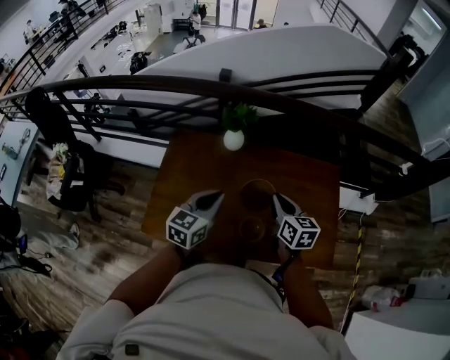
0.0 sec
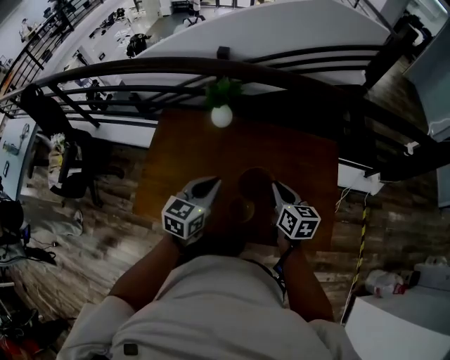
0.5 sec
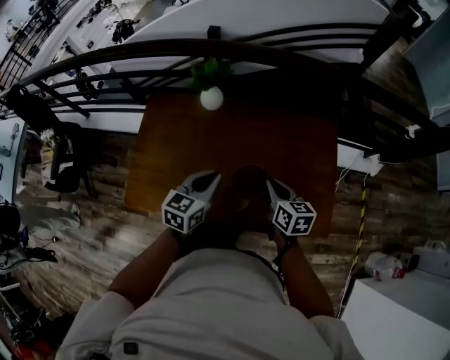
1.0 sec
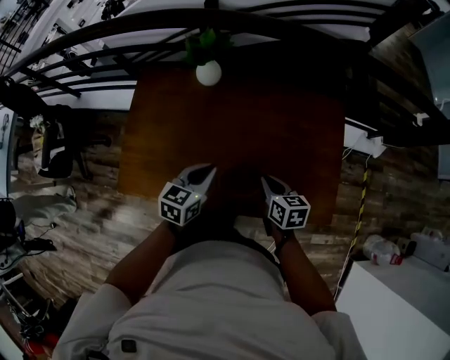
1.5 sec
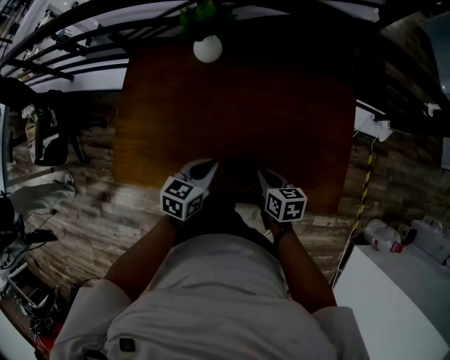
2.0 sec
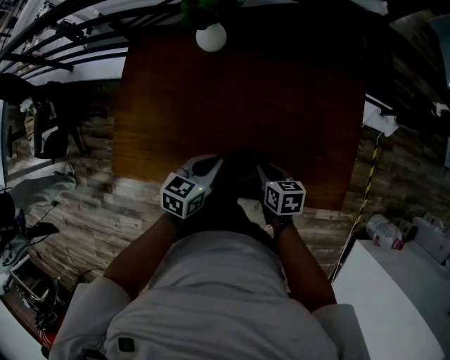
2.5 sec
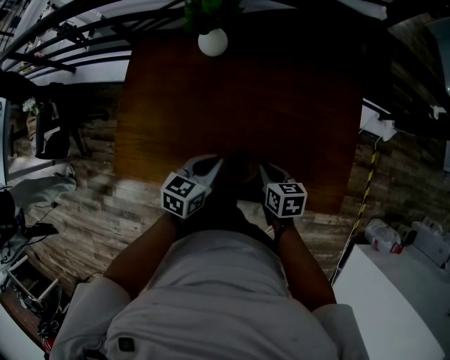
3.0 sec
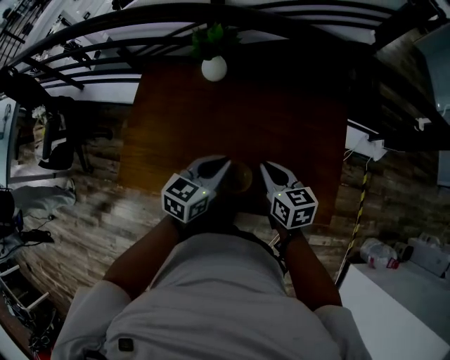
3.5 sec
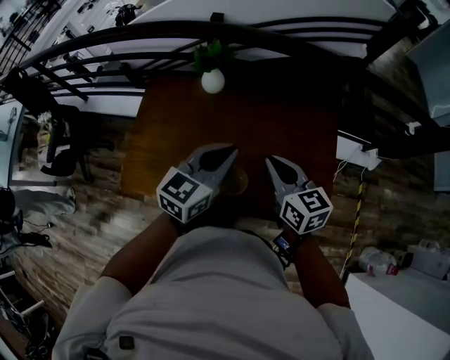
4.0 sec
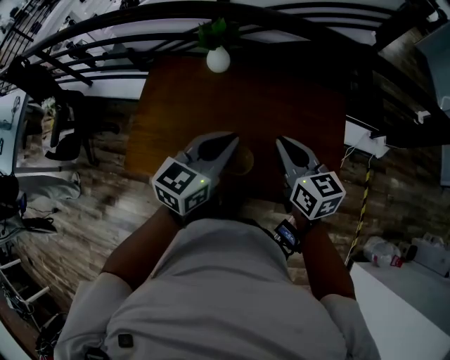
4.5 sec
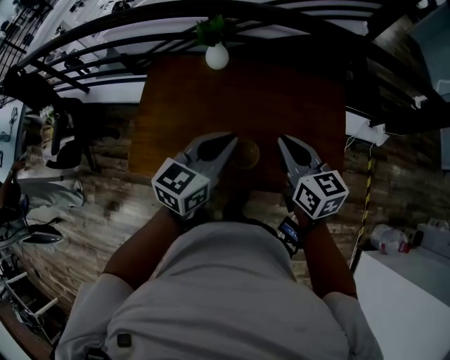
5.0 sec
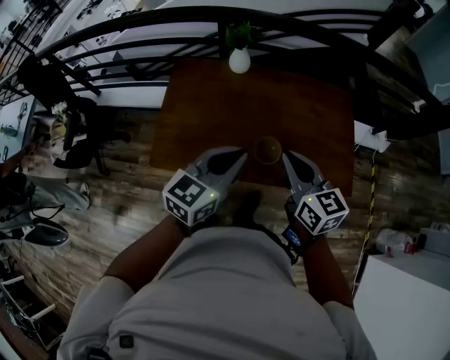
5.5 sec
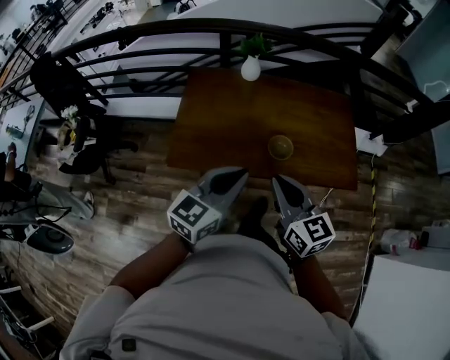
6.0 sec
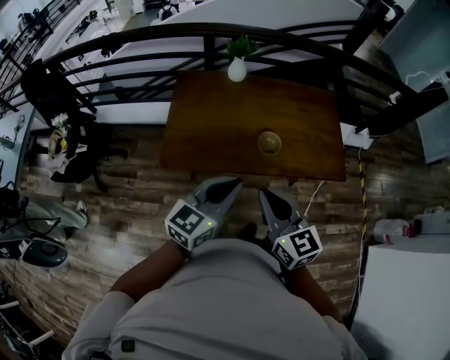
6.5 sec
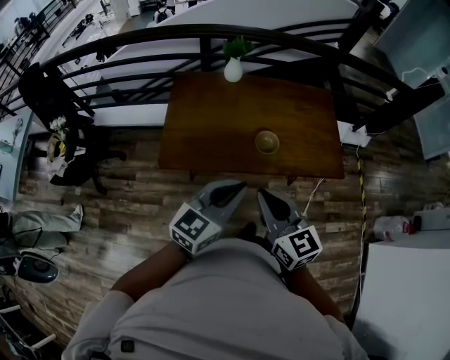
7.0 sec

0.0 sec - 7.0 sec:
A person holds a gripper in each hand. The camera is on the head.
0.0 sec - 2.0 sec: The left gripper moves downward and to the right, approximately 25 cm, and turns by approximately 20 degrees. Meanwhile the right gripper is displaced downward by roughly 25 cm, and turns by about 30 degrees.
2.0 sec - 3.5 sec: The grippers both shift upward by approximately 15 cm.
3.5 sec - 5.0 sec: The grippers both shift upward and backward by about 15 cm.
5.0 sec - 7.0 sec: The left gripper heads backward, covering roughly 35 cm, while the right gripper shifts roughly 40 cm backward and to the left.

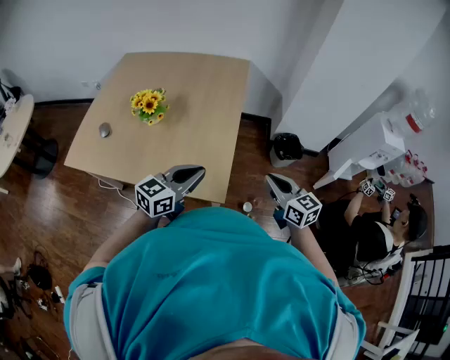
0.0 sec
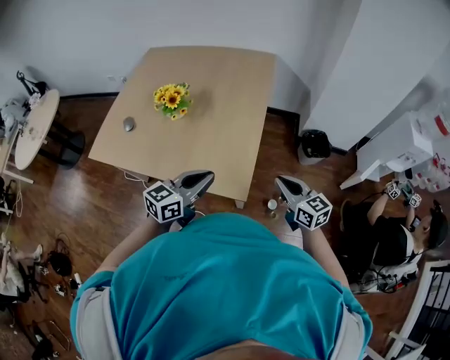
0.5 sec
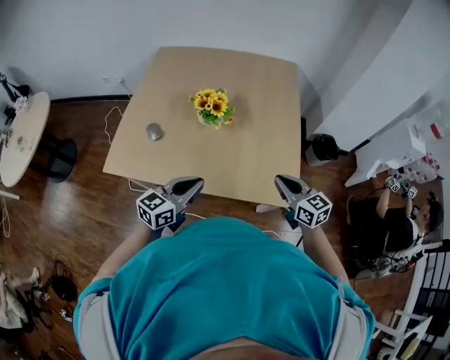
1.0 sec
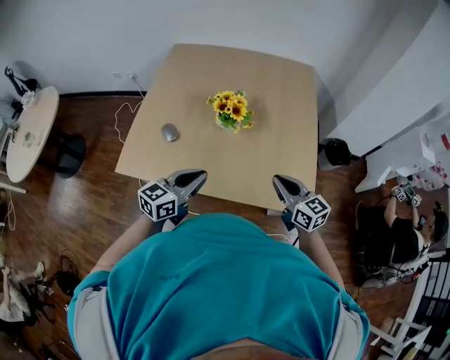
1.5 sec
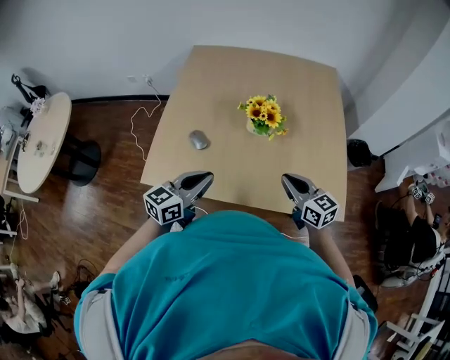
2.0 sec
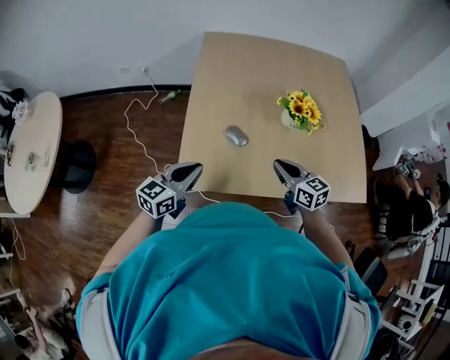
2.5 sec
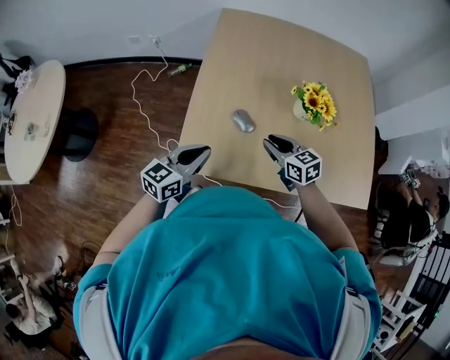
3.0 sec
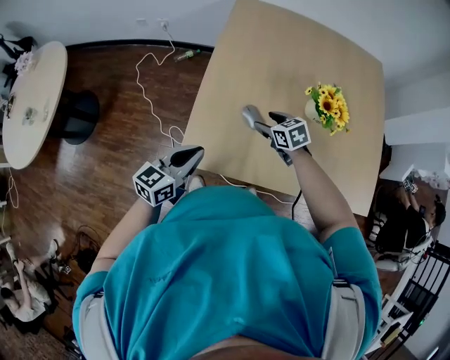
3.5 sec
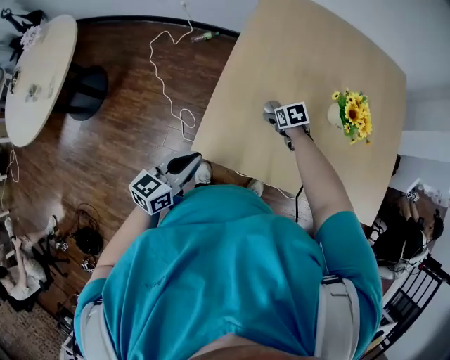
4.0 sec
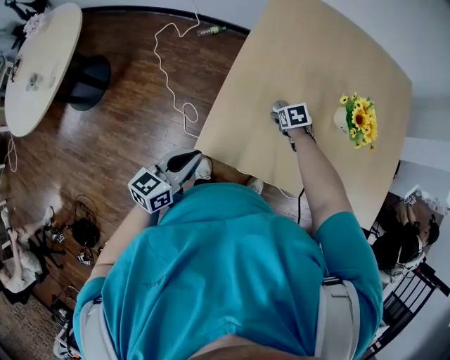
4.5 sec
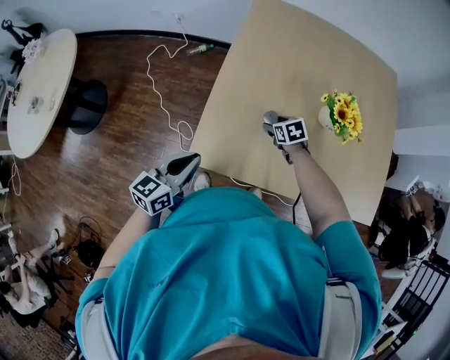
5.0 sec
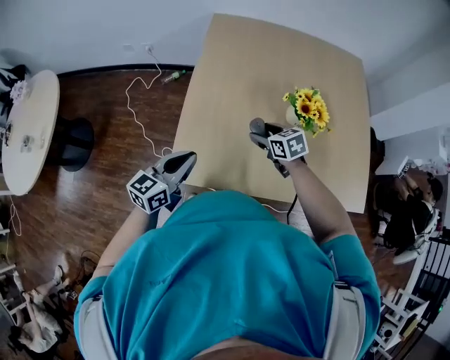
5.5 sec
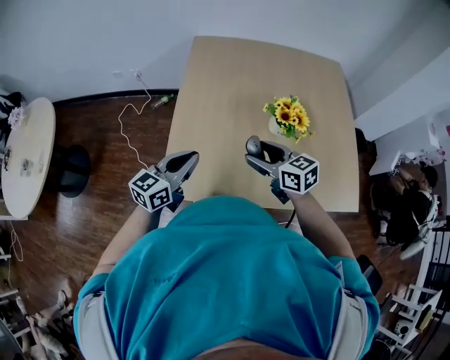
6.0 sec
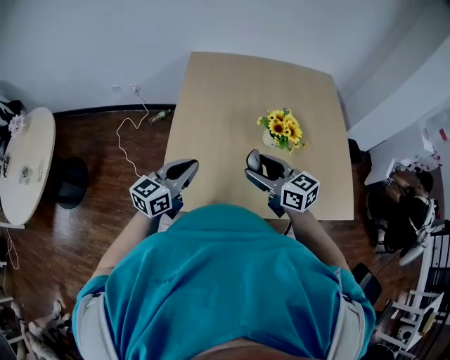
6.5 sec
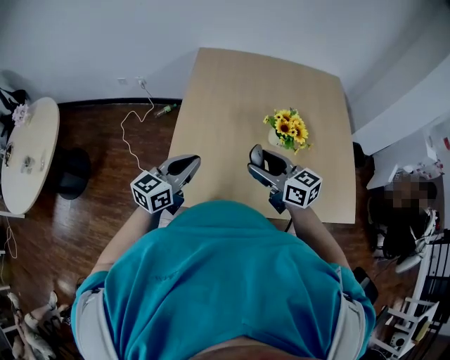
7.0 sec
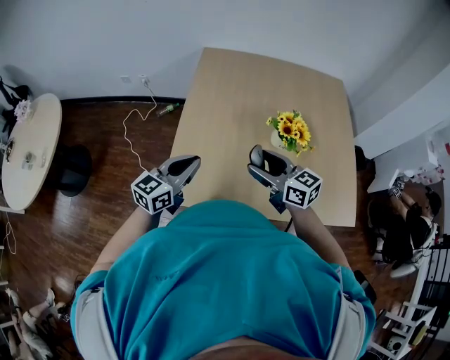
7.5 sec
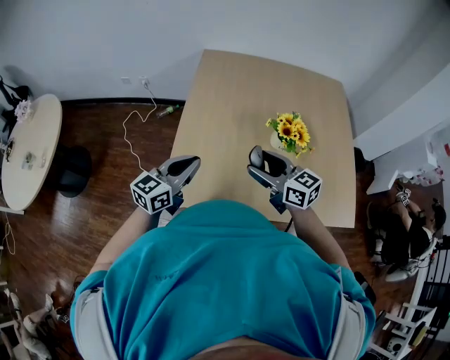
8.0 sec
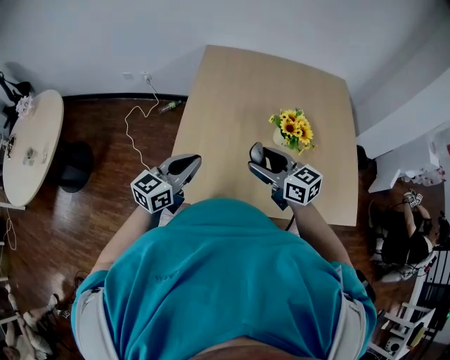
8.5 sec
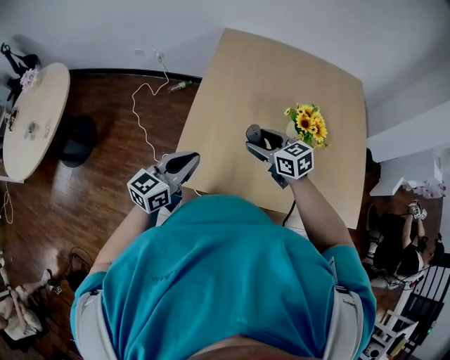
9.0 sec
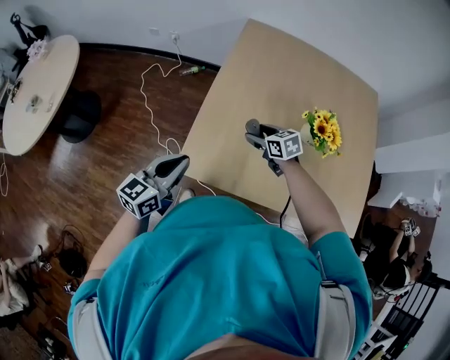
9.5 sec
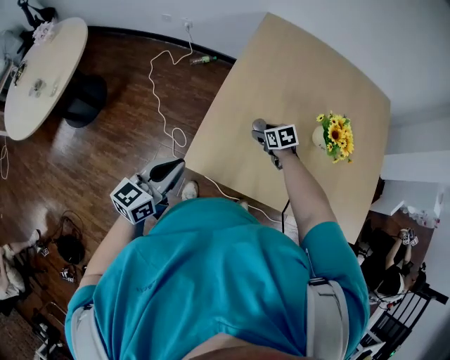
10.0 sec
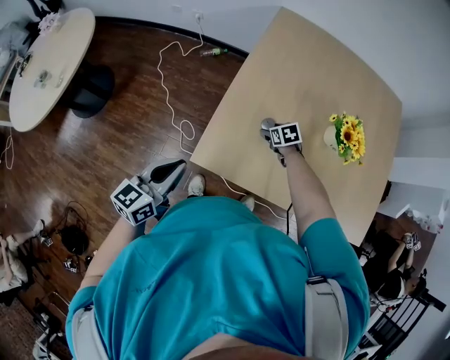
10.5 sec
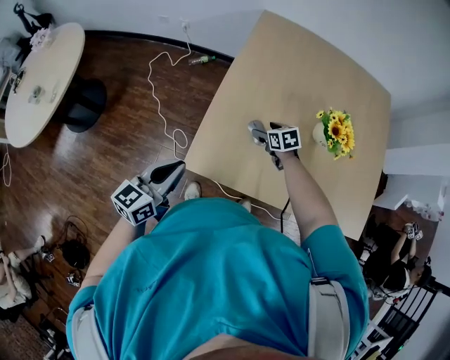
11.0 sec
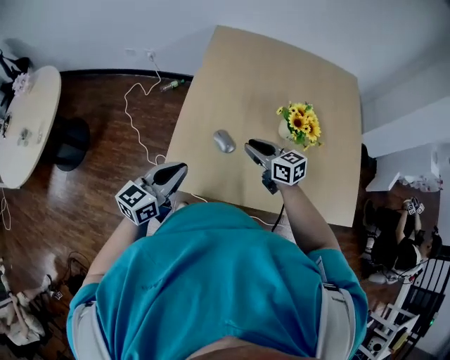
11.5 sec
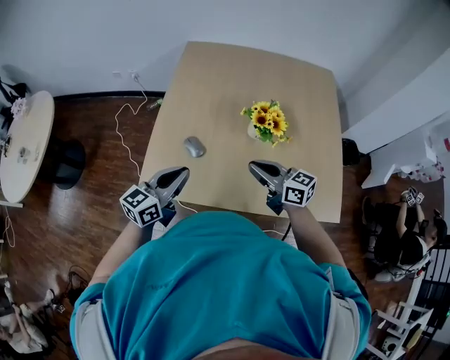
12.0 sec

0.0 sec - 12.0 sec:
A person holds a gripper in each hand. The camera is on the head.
0.0 sec - 2.0 sec: Both grippers are carried to the left, approximately 50 cm.
2.0 sec - 4.0 sec: The left gripper travels to the left by approximately 35 cm, while the right gripper heads to the left, downward and forward, covering roughly 50 cm, angles its fingers downward, by roughly 50 degrees, and opens.
4.0 sec - 6.0 sec: The right gripper moves upward and backward, some 30 cm, and points its fingers approximately 40 degrees further upward. The left gripper is displaced to the right, upward and forward by some 20 cm.
6.0 sec - 8.0 sec: The grippers move only a little.
8.0 sec - 10.0 sec: The left gripper heads to the left and backward, covering roughly 15 cm. Meanwhile the right gripper moves downward and forward, some 30 cm, and angles its fingers downward, by about 50 degrees.
10.0 sec - 12.0 sec: The left gripper travels to the right by some 25 cm, while the right gripper moves upward, backward and to the right, roughly 35 cm, angles its fingers upward, by approximately 50 degrees, and closes its fingers.

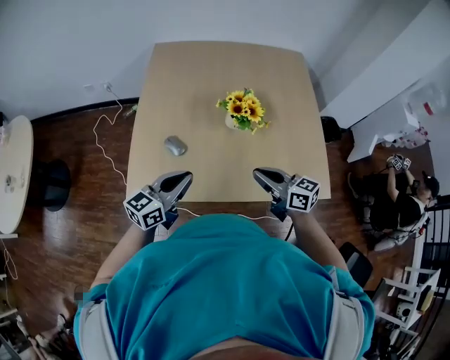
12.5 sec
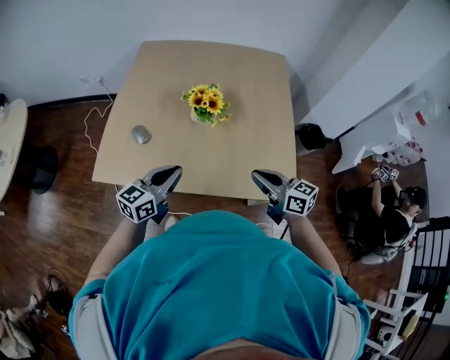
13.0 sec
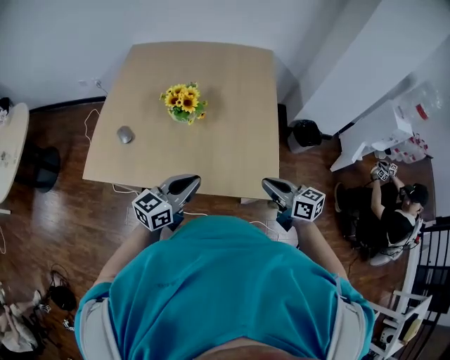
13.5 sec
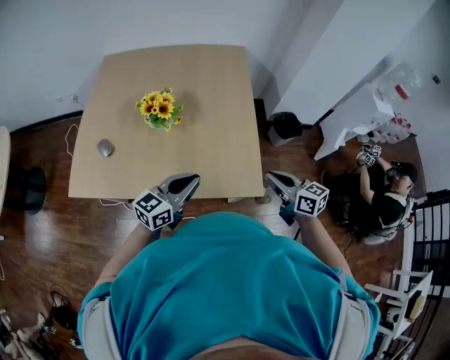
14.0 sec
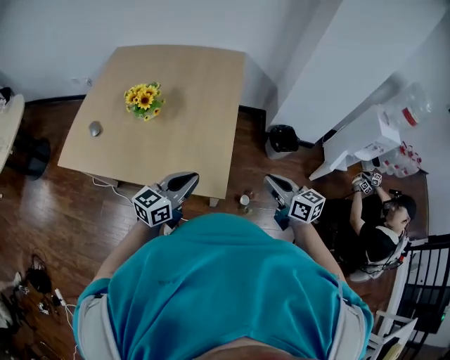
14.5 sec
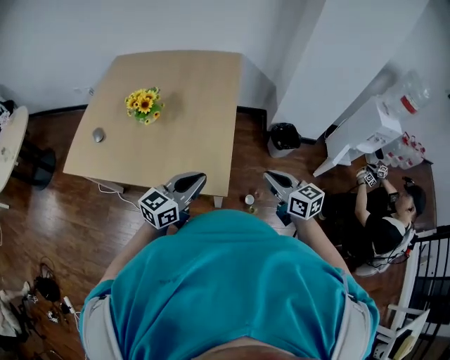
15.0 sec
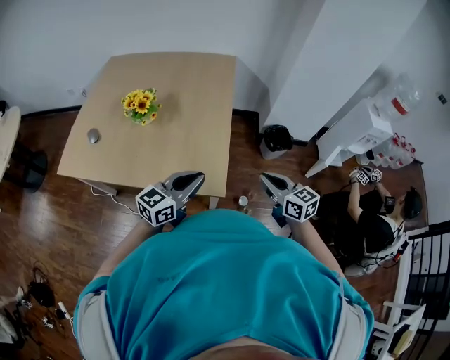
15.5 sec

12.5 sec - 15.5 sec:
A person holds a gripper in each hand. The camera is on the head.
12.5 sec - 14.0 sec: The two grippers go some 40 cm to the right.
14.0 sec - 15.5 sec: The grippers both shift to the right by about 15 cm.

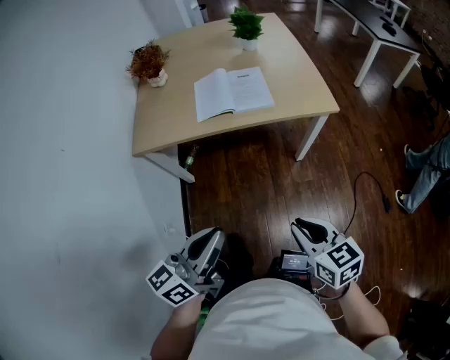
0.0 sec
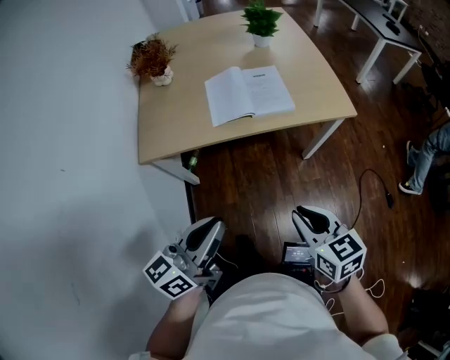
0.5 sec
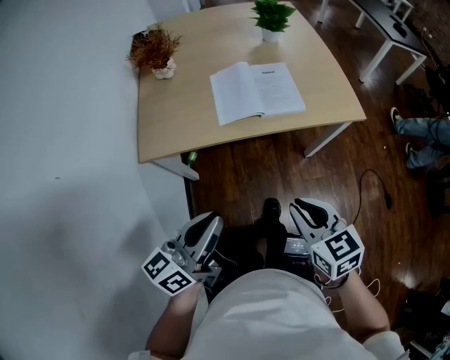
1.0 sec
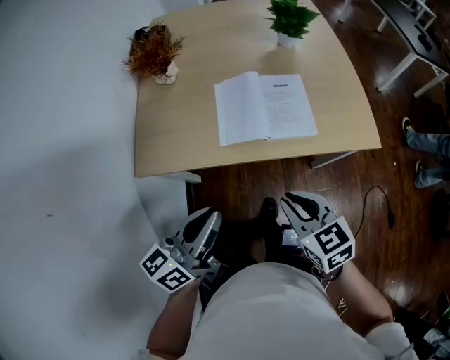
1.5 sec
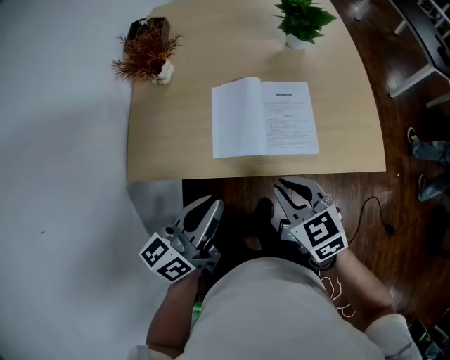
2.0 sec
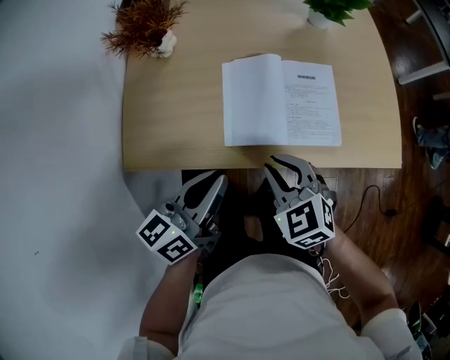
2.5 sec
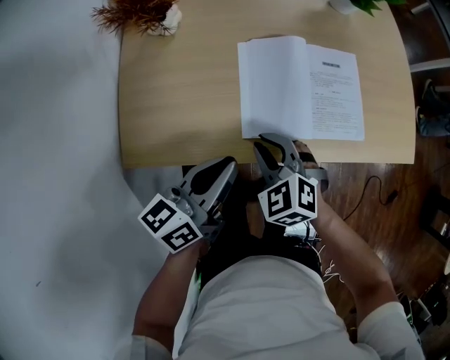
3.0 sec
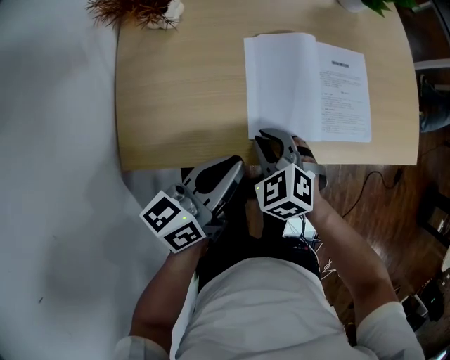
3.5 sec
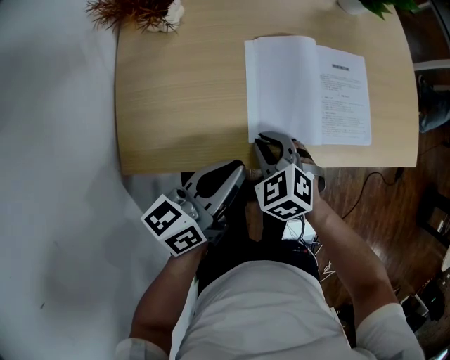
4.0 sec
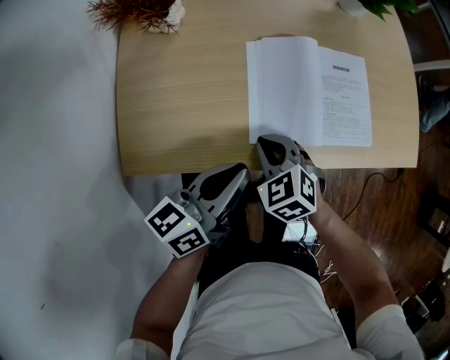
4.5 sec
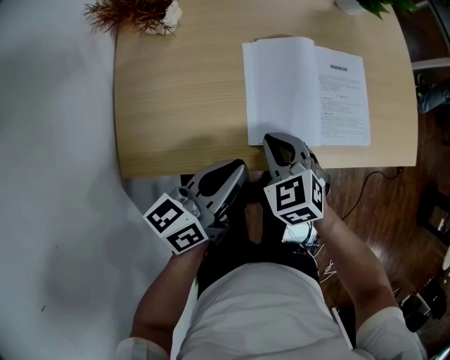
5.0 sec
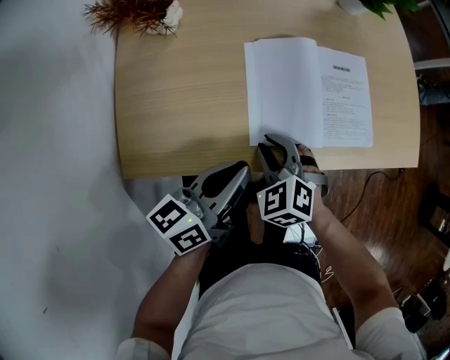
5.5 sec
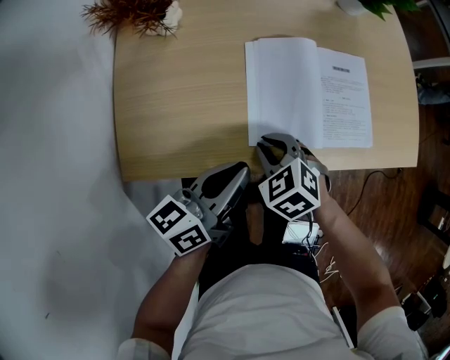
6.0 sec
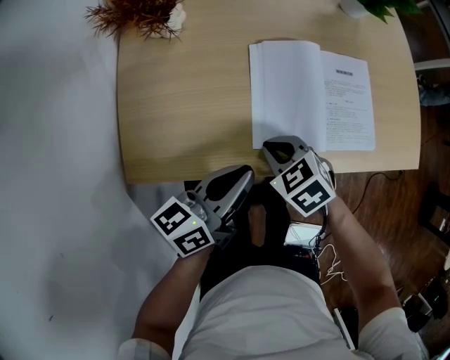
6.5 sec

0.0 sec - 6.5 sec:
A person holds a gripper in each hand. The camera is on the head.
0.0 sec - 2.0 sec: The two grippers go some 35 cm forward. The right gripper turns by some 20 degrees.
2.0 sec - 4.5 sec: The right gripper travels to the left, downward and forward by roughly 25 cm, and swivels roughly 20 degrees; the left gripper travels downward, to the left and forward by approximately 15 cm.
4.5 sec - 6.5 sec: There are only small adjustments of the grippers.
